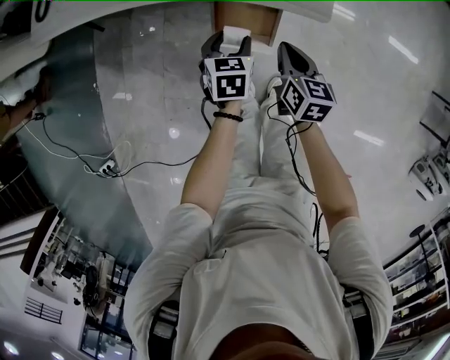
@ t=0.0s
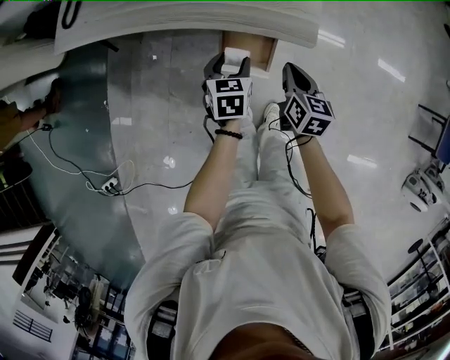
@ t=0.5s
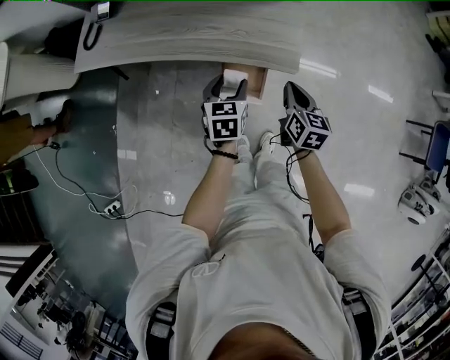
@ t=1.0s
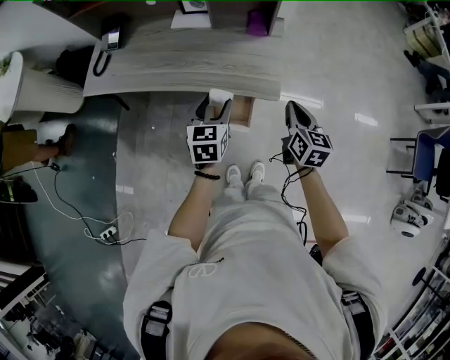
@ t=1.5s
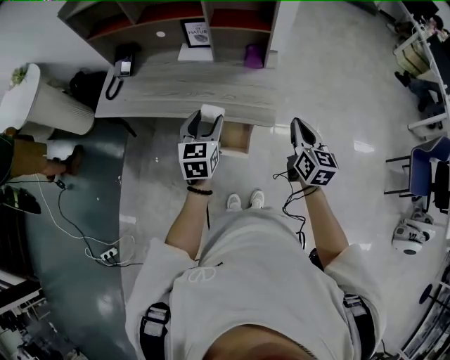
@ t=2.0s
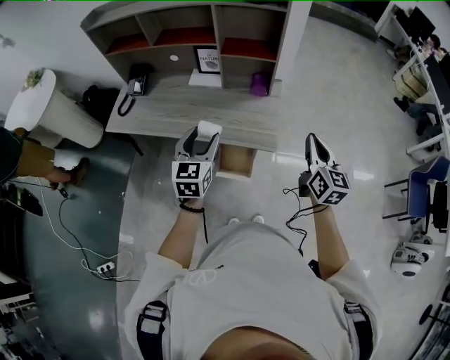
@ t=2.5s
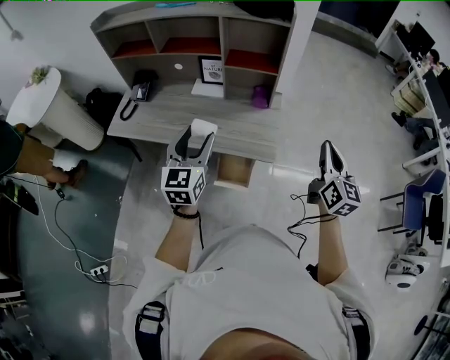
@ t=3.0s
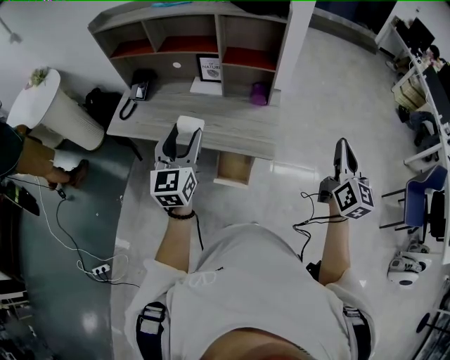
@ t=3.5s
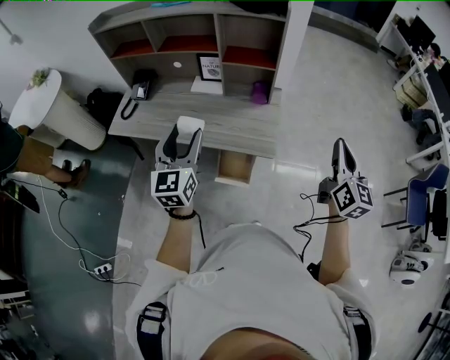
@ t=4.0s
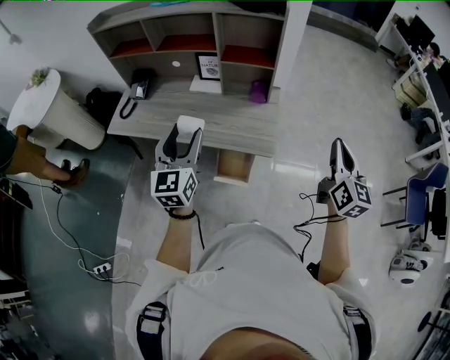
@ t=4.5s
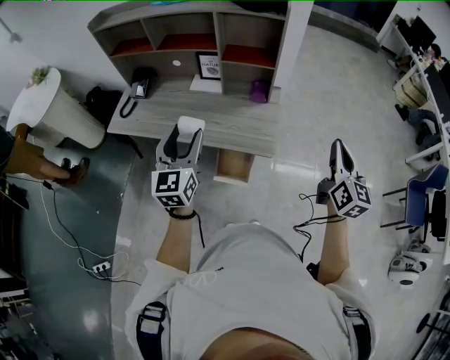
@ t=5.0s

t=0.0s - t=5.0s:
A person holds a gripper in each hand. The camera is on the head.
t=0.0s - t=2.5s: The grippers both shift upward by roughly 50 cm. The left gripper tips its fingers upward by about 40 degrees, while the right gripper swivels approximately 30 degrees.
t=2.5s - t=5.0s: The left gripper goes about 10 cm upward. Meanwhile the right gripper travels to the right and upward by roughly 10 cm.

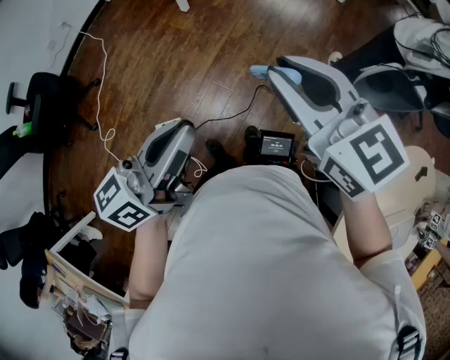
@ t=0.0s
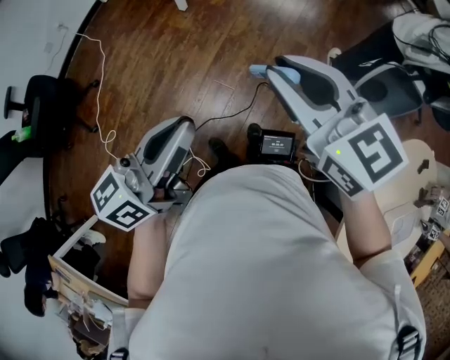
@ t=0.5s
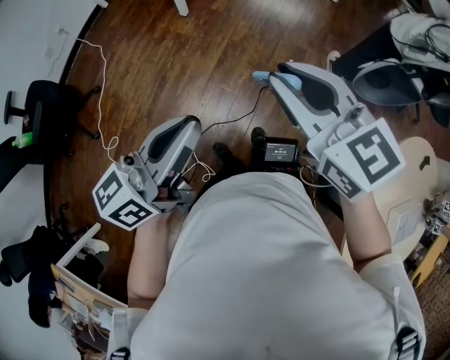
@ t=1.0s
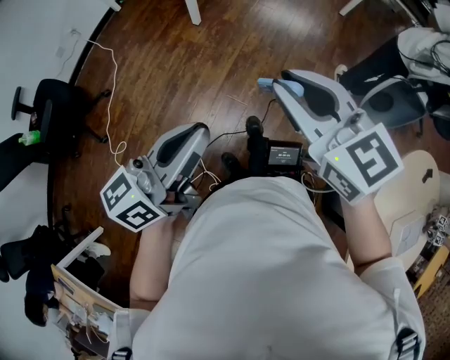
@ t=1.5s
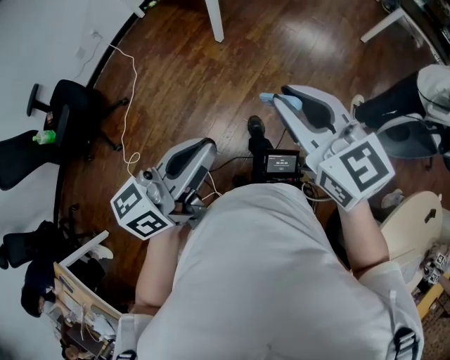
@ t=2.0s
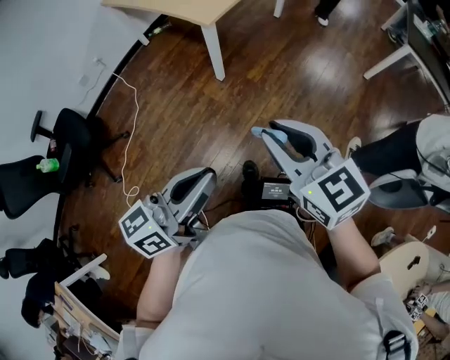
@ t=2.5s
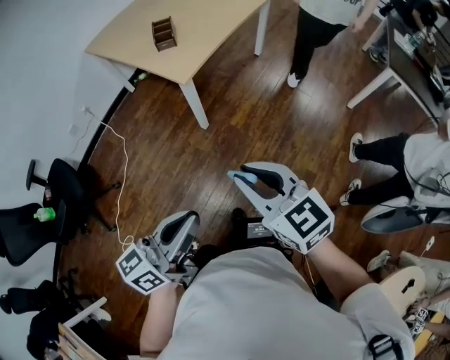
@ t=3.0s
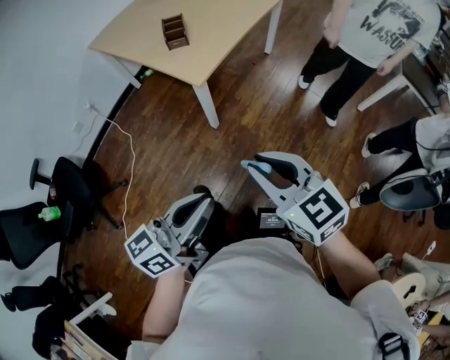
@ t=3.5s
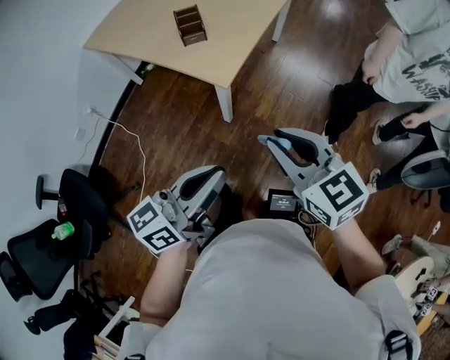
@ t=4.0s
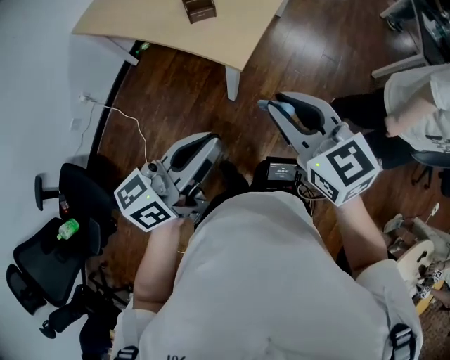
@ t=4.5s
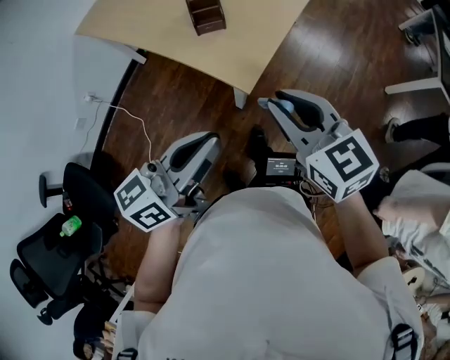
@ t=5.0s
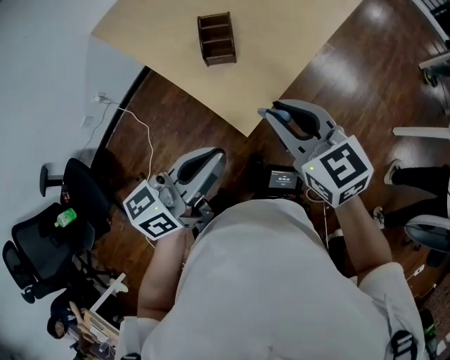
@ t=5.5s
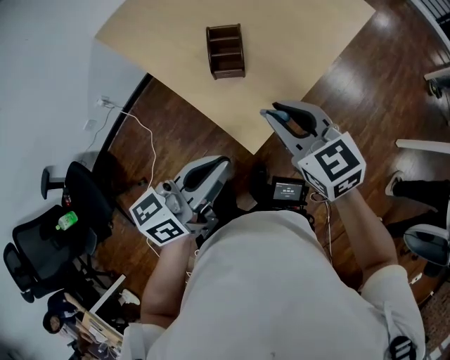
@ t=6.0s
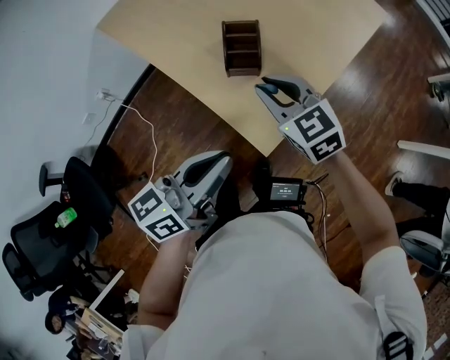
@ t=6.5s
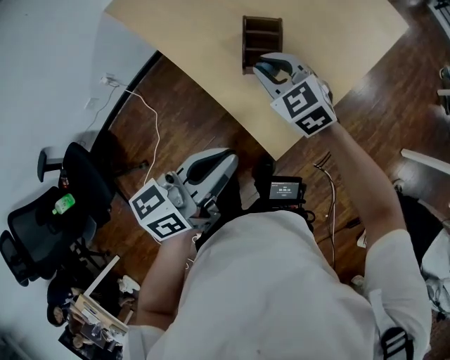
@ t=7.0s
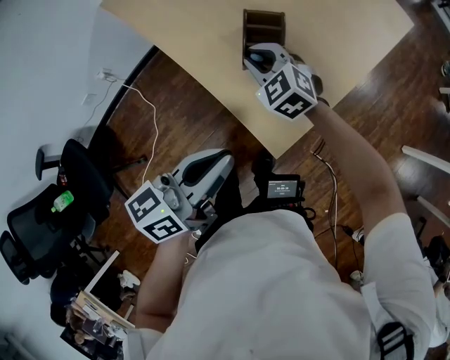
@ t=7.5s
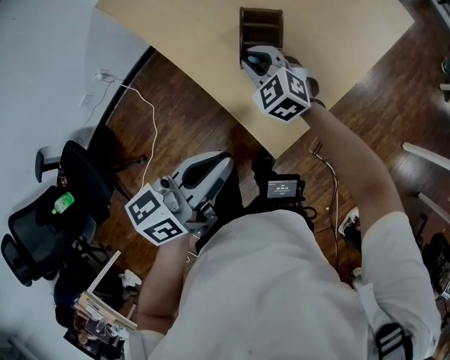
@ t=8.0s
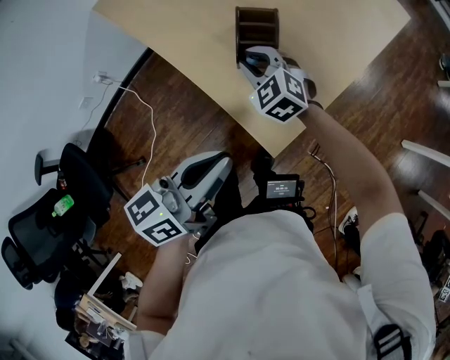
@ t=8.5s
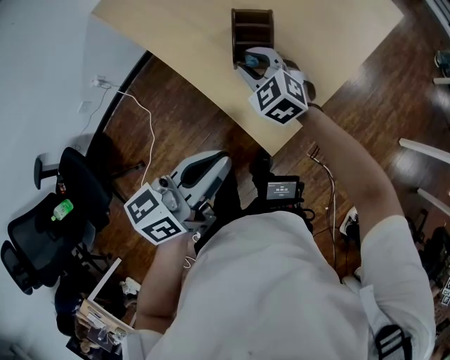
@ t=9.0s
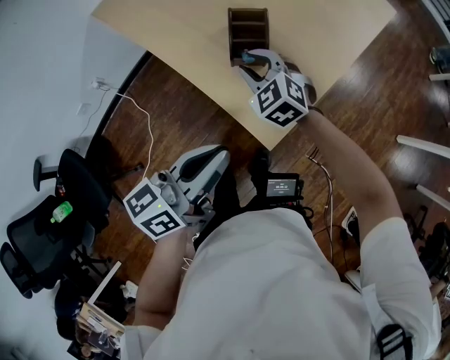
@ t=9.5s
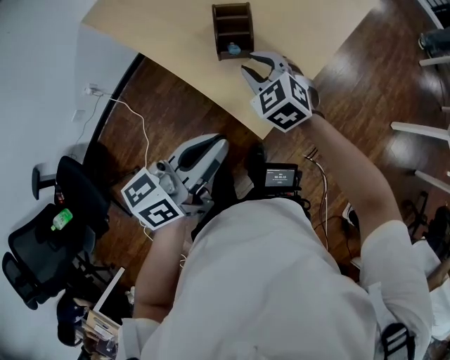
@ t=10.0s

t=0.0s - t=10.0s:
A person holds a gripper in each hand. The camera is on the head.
t=0.0s - t=2.0s: Both grippers travel together to the left and forward, roughly 15 cm.
t=2.0s - t=4.0s: The two grippers travel together, forward, about 40 cm.
t=4.0s - t=6.0s: Both grippers move forward, roughly 30 cm.
t=6.0s - t=8.0s: The left gripper ends up some 5 cm from where it was, while the right gripper goes some 25 cm downward, forward and to the left, and changes its angle by approximately 30 degrees.
t=8.0s - t=10.0s: The right gripper changes place by about 5 cm.

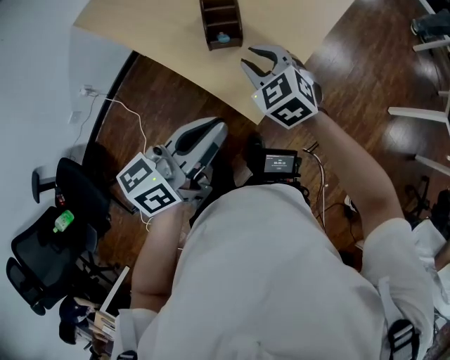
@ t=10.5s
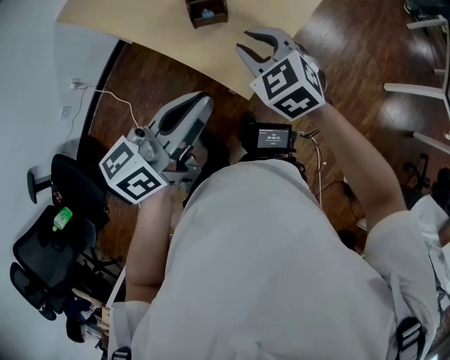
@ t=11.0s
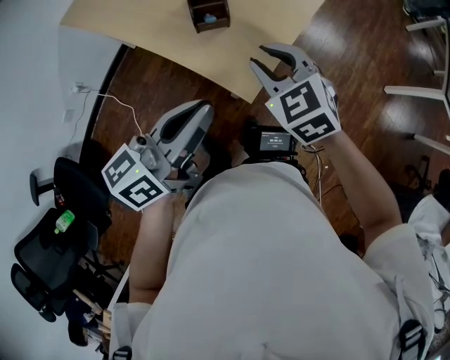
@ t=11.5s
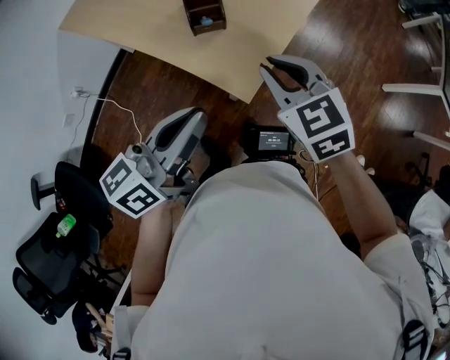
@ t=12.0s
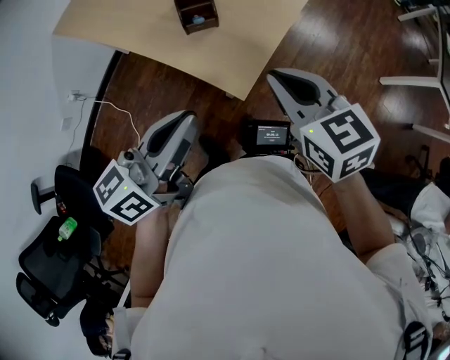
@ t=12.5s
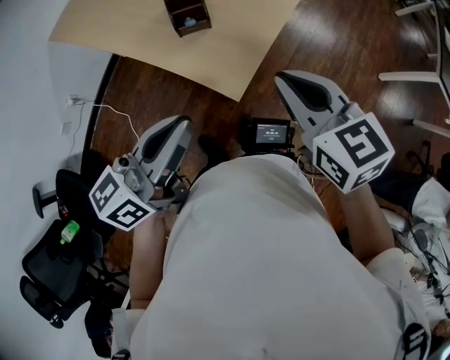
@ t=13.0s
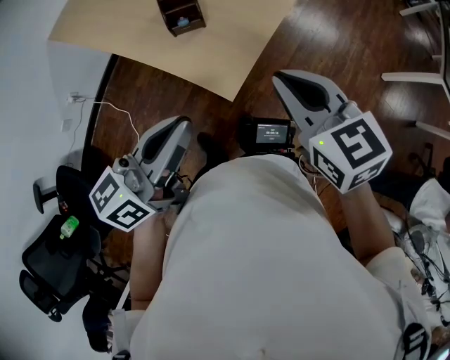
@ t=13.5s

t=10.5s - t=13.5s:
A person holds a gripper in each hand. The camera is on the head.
t=10.5s - t=12.0s: The right gripper is displaced backward, to the right and upward by some 15 cm.
t=12.0s - t=13.5s: The right gripper shifts roughly 5 cm to the right.

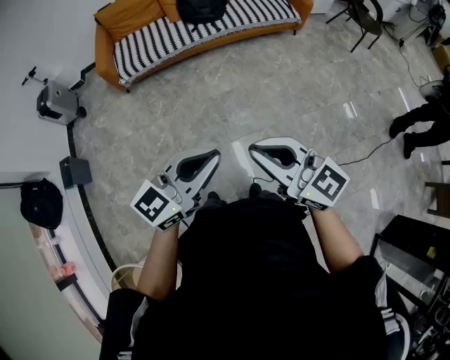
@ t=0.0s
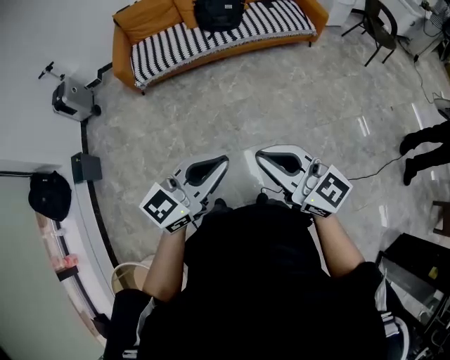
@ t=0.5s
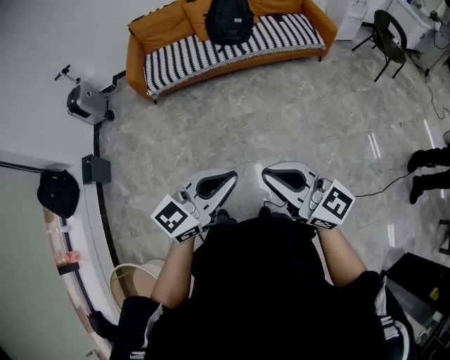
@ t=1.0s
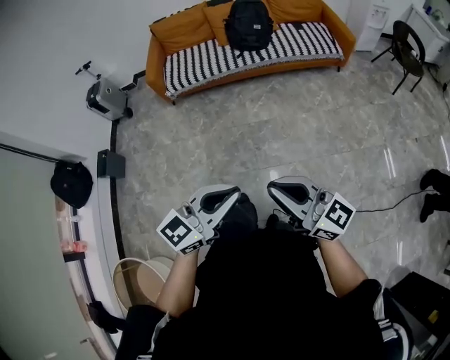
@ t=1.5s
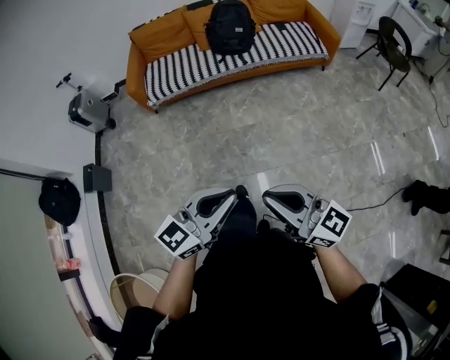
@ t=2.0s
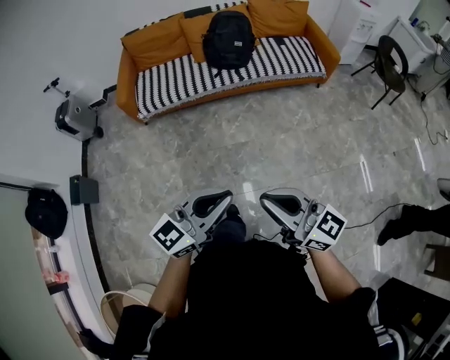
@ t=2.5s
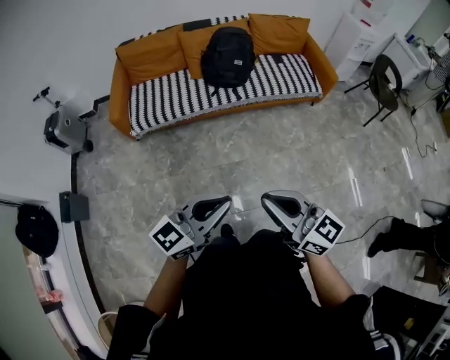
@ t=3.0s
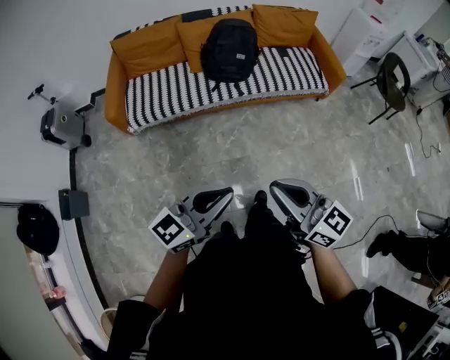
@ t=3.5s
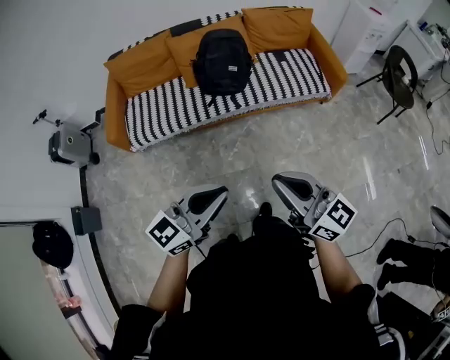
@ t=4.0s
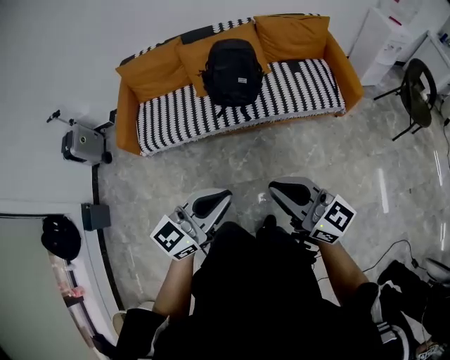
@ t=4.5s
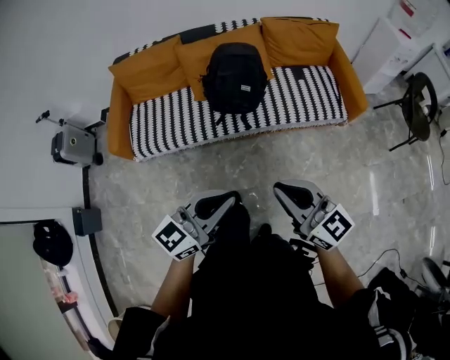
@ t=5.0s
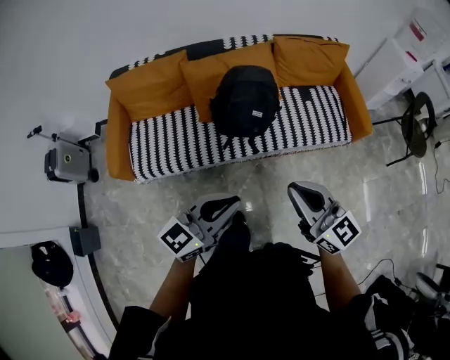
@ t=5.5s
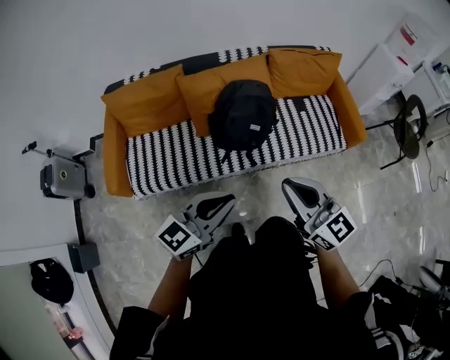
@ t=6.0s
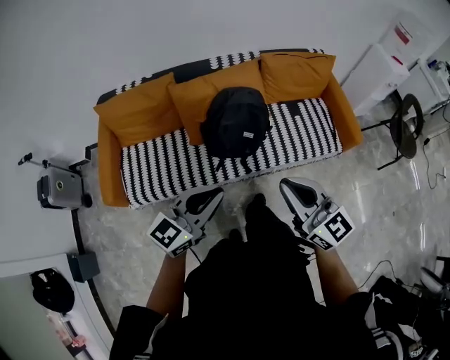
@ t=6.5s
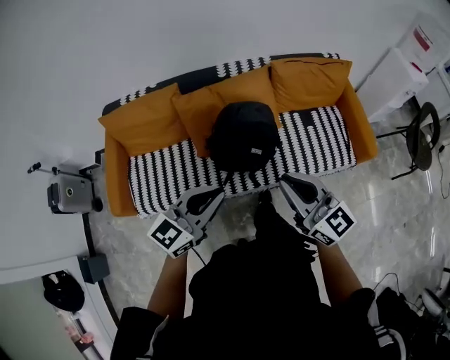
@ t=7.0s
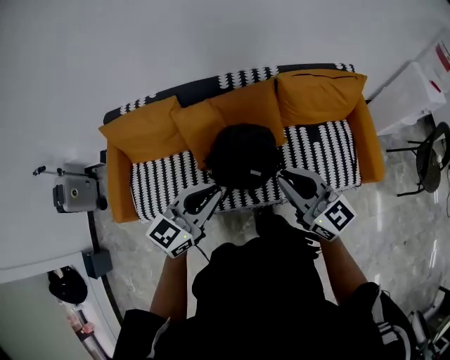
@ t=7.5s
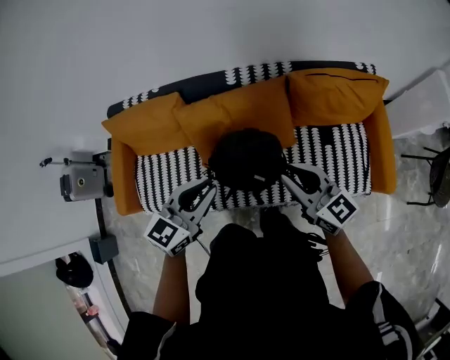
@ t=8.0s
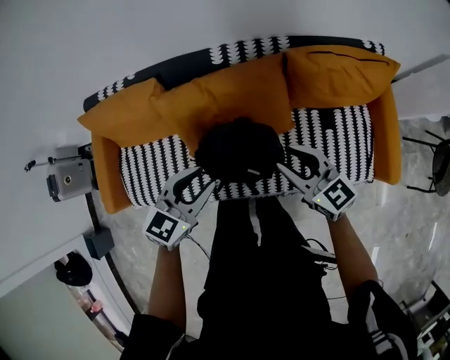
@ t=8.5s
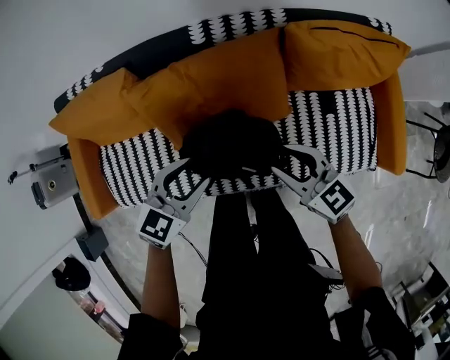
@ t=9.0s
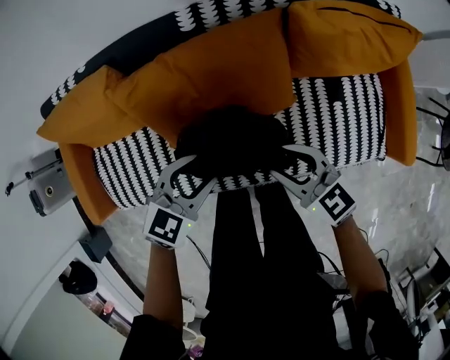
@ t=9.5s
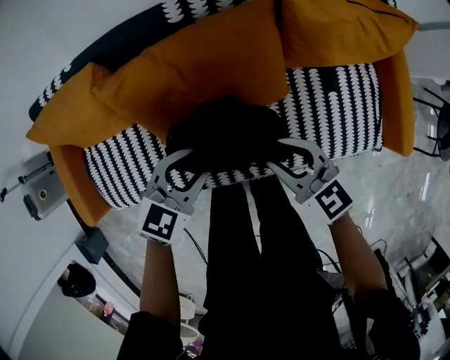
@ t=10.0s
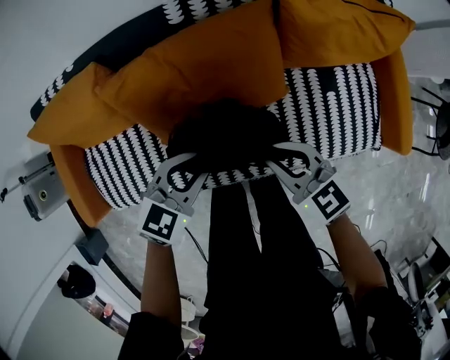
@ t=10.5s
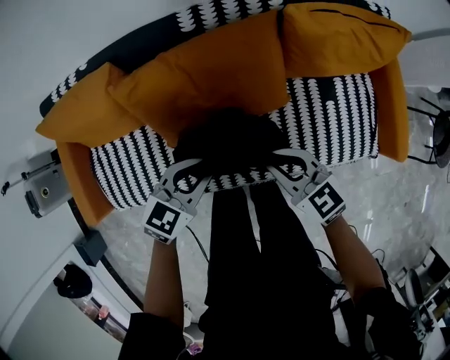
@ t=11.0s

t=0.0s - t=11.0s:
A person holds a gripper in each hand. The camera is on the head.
t=0.0s - t=2.0s: Both grippers travel together to the right, approximately 5 cm.
t=2.0s - t=3.5s: The grippers both shift forward by some 30 cm.
t=3.5s - t=5.5s: The two grippers go about 40 cm forward.
t=5.5s - t=7.5s: Both grippers travel together forward, approximately 30 cm.
t=7.5s - t=9.0s: Both grippers move downward and forward, some 25 cm. The left gripper turns by about 20 degrees, and opens, while the right gripper swivels roughly 20 degrees, and opens.
t=9.0s - t=11.0s: The right gripper ends up roughly 5 cm from where it was, and closes, while the left gripper shifts about 5 cm downward, and closes its fingers.
